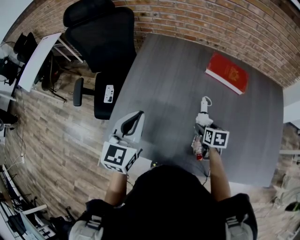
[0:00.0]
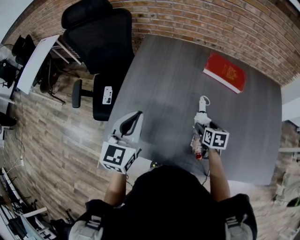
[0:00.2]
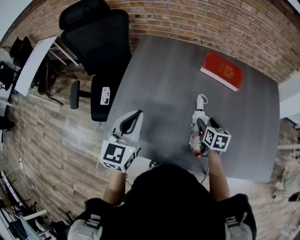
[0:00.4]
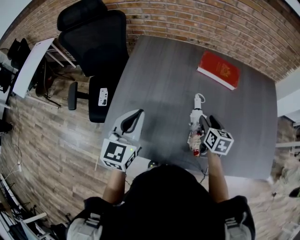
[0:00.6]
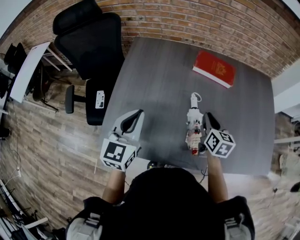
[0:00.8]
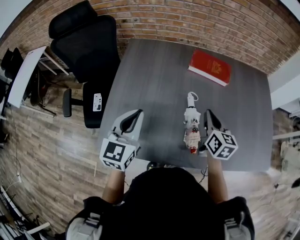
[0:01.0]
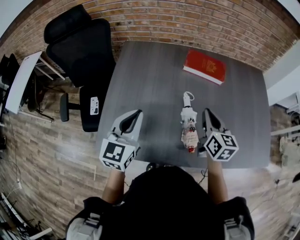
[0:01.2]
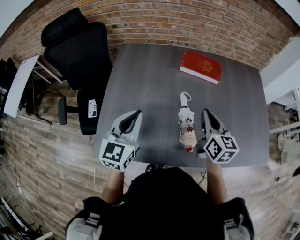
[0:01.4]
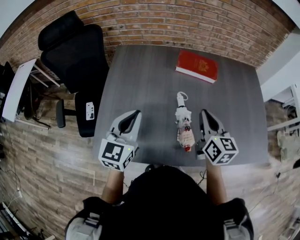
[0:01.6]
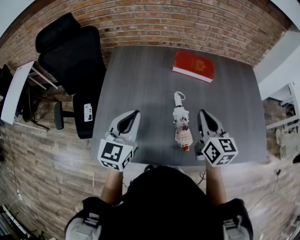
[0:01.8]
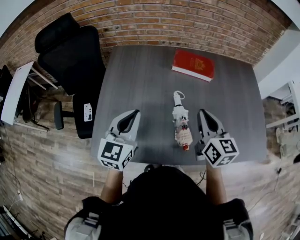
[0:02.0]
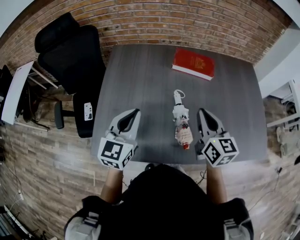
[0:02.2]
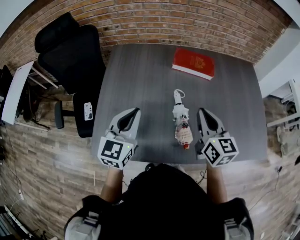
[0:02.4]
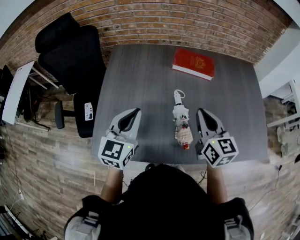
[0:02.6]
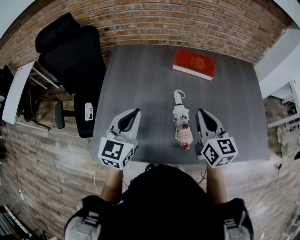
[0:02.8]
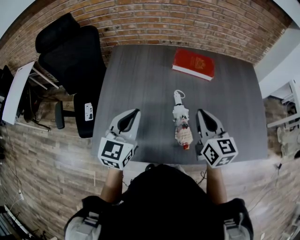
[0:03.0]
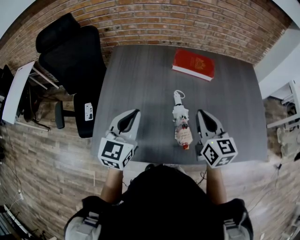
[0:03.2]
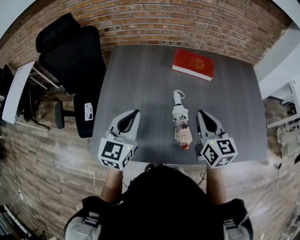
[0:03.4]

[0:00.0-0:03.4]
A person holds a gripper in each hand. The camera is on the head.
0:00.0 to 0:01.6: The right gripper heads upward, covering some 25 cm, angles its fingers upward, by about 40 degrees, and closes; the left gripper heads to the right, covering roughly 5 cm.
0:01.6 to 0:03.4: The grippers move only a little.

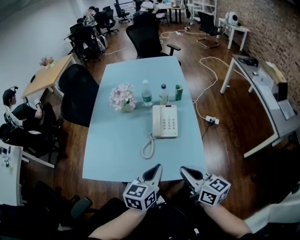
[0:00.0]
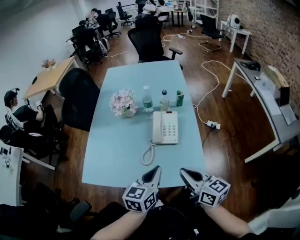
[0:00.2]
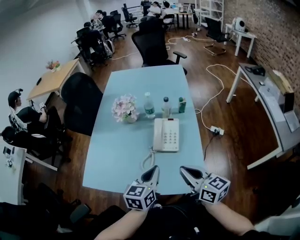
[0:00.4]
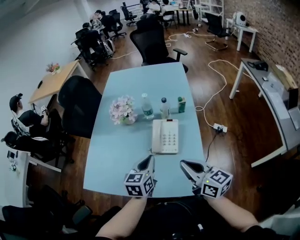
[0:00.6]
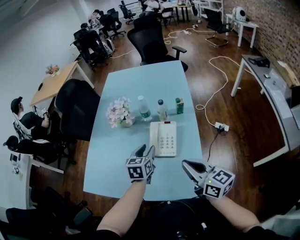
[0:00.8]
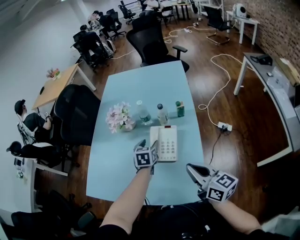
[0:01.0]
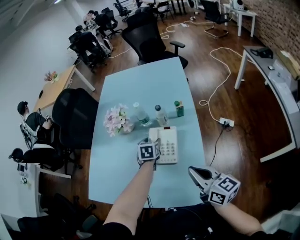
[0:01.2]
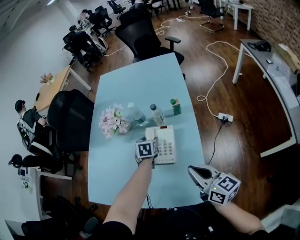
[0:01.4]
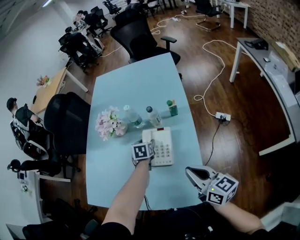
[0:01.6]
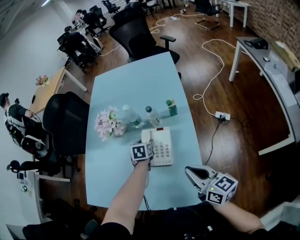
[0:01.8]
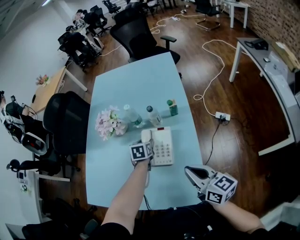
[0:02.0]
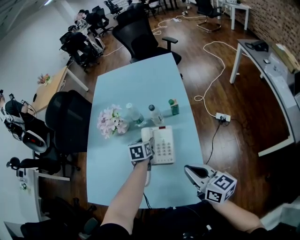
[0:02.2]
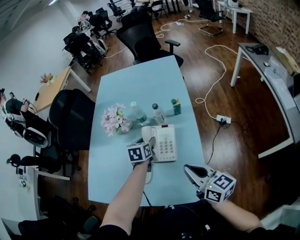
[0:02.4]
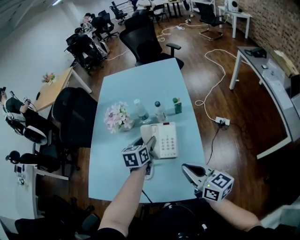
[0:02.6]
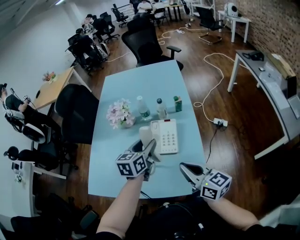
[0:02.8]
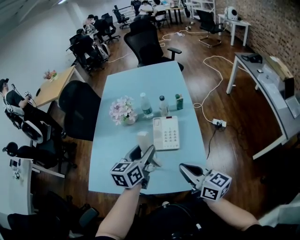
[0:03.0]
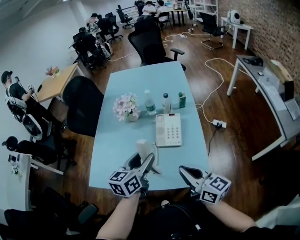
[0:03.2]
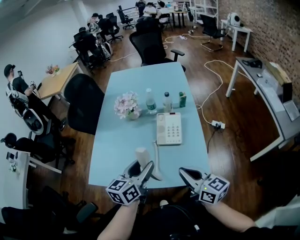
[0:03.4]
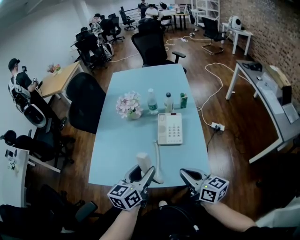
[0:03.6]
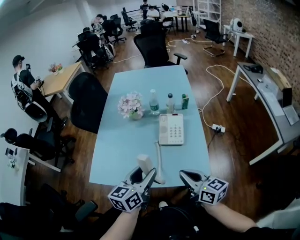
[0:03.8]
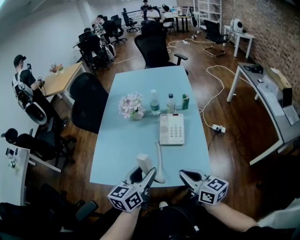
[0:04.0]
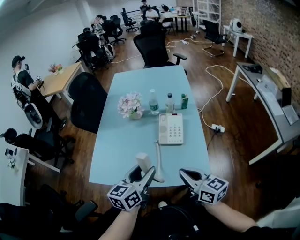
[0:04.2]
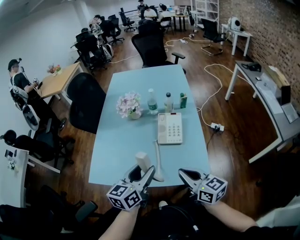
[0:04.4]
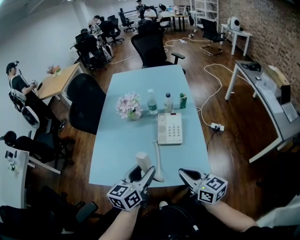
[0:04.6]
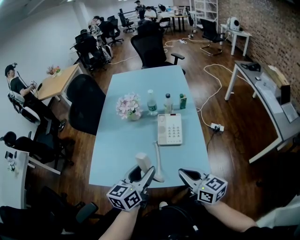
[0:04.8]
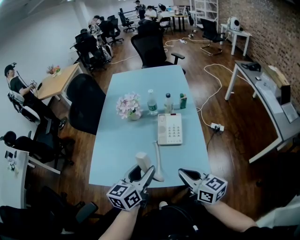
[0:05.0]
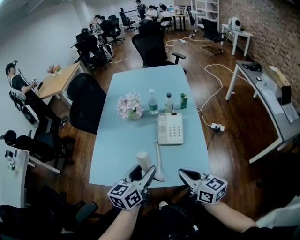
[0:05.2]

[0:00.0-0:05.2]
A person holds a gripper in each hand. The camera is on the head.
0:00.0 to 0:01.8: The left gripper heads forward and downward, covering approximately 40 cm, changes its angle by some 30 degrees, and opens, while the right gripper heads forward and to the right, covering approximately 20 cm.
0:01.8 to 0:03.4: The left gripper shifts some 40 cm backward, upward and to the left, and tips its fingers upward by roughly 40 degrees. The right gripper moves to the left and backward, roughly 20 cm.
0:03.4 to 0:05.2: The grippers make only small movements.

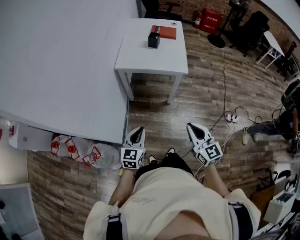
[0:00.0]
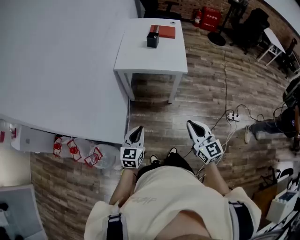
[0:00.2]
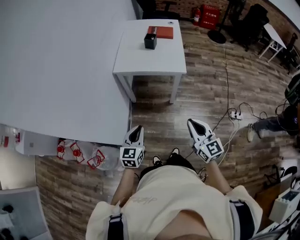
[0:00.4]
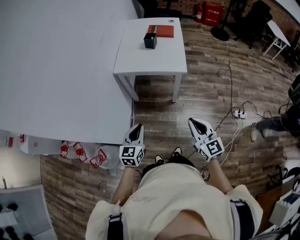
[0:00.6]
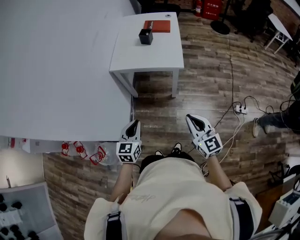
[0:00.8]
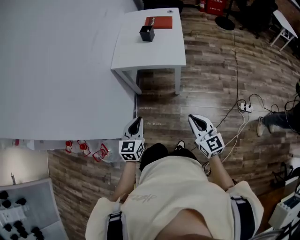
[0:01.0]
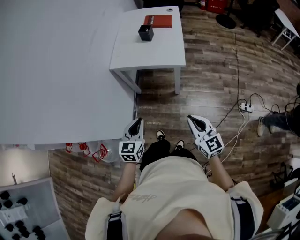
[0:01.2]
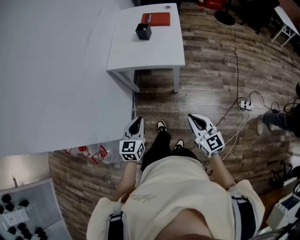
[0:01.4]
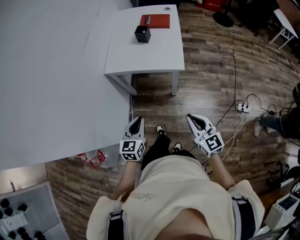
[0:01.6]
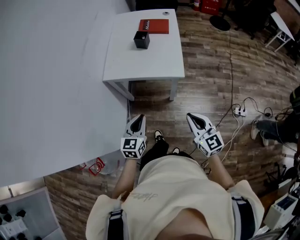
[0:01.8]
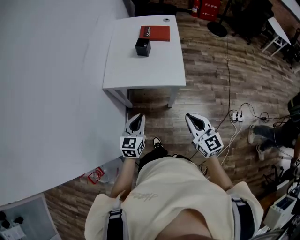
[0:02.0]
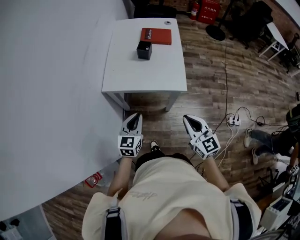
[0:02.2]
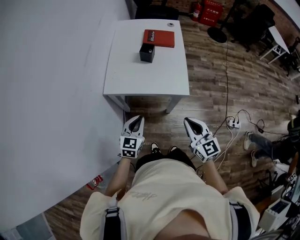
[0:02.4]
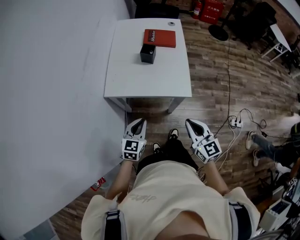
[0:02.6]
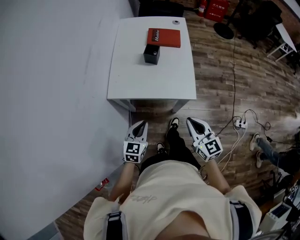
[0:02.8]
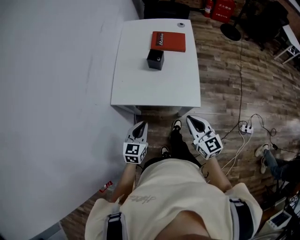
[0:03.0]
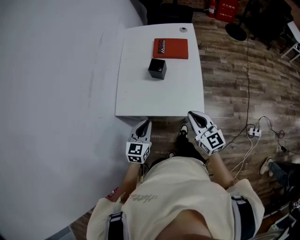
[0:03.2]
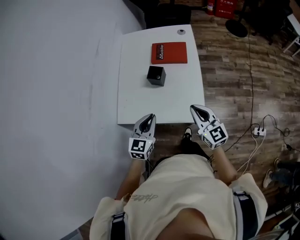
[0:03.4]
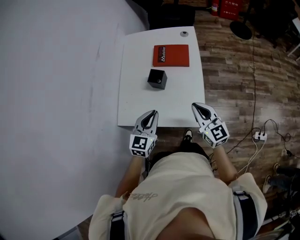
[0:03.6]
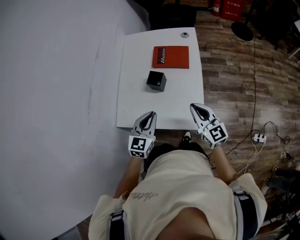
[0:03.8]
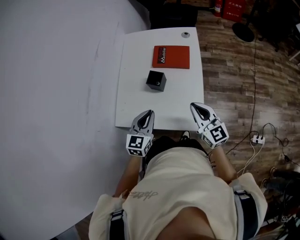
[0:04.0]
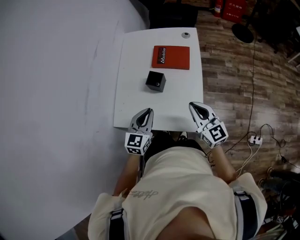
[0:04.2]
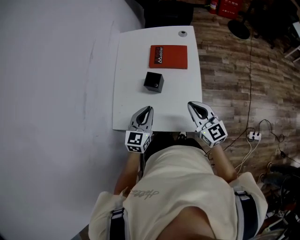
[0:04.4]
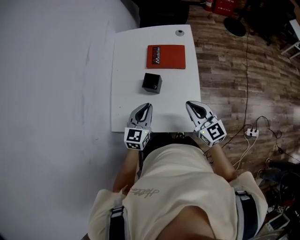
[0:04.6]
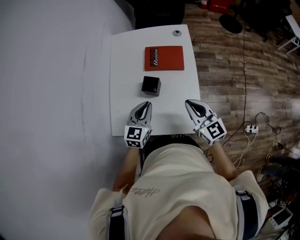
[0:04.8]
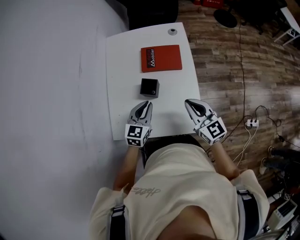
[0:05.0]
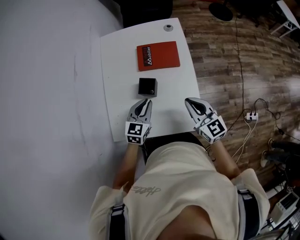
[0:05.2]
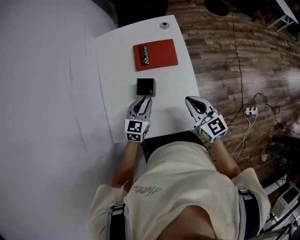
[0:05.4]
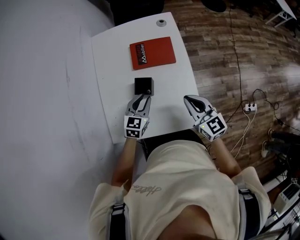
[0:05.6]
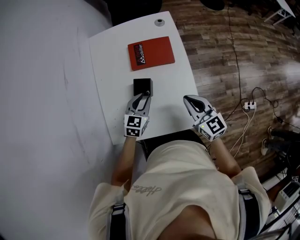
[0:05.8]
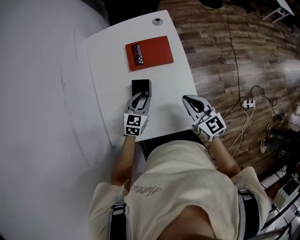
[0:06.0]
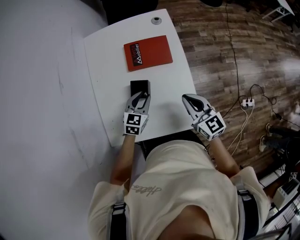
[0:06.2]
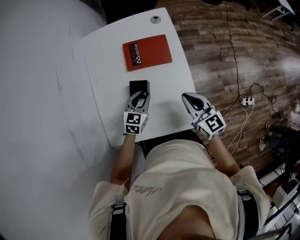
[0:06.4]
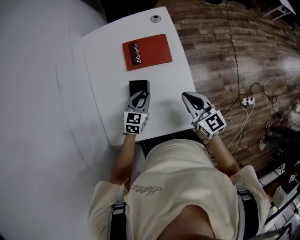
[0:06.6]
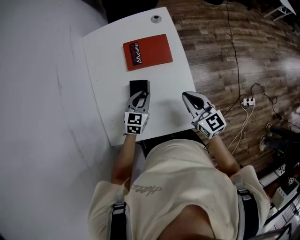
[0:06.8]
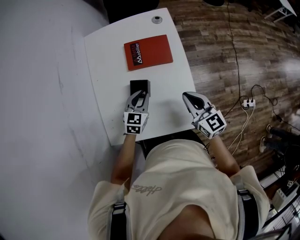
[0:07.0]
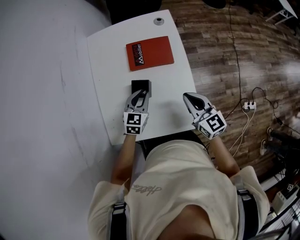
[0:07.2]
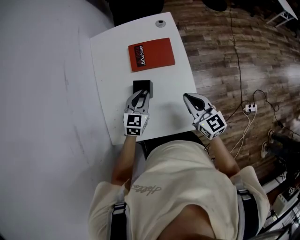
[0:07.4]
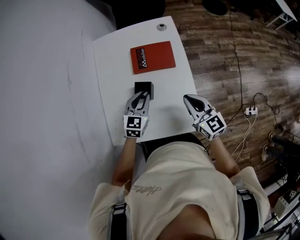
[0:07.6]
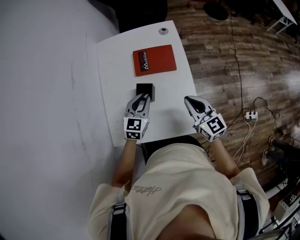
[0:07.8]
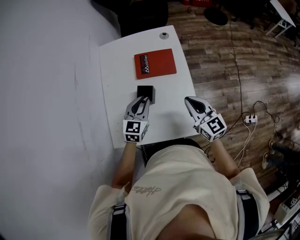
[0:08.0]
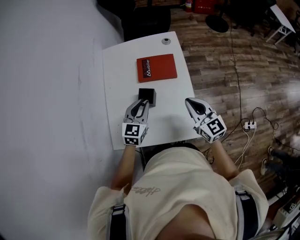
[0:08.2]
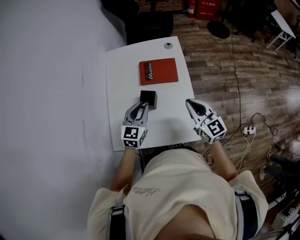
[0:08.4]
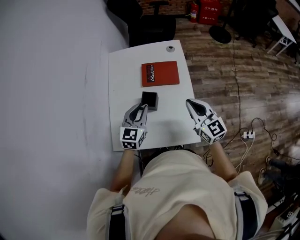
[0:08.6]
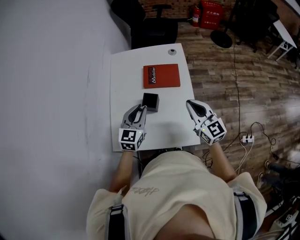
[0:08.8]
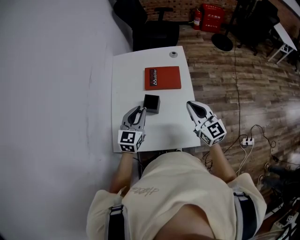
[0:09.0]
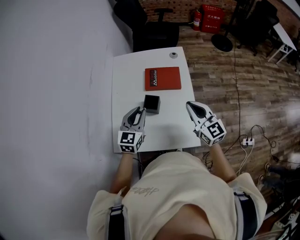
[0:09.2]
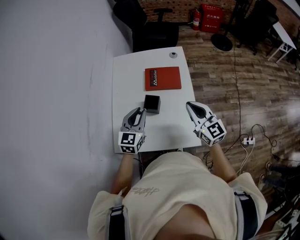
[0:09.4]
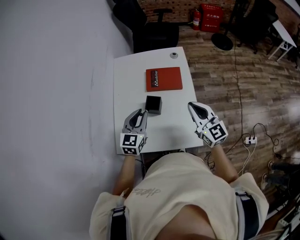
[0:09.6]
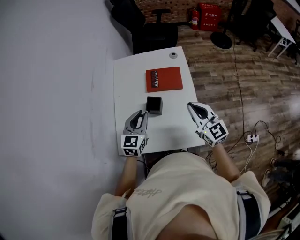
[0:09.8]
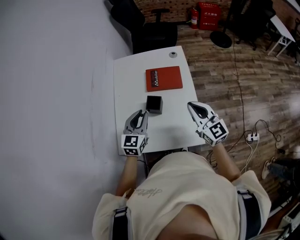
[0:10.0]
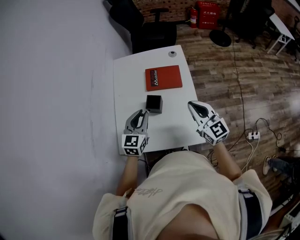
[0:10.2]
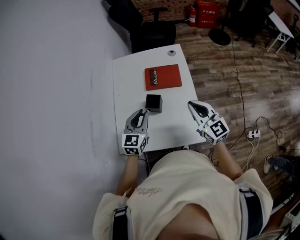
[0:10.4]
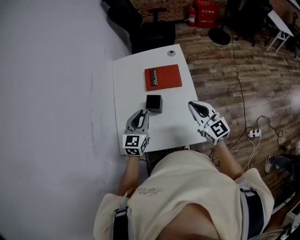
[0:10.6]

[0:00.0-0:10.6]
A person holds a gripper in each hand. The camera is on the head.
0:00.0 to 0:01.6: The grippers both shift forward and to the right by approximately 15 cm.
0:01.6 to 0:03.0: The two grippers go about 25 cm forward.
0:03.0 to 0:04.6: Both grippers travel together forward, approximately 25 cm.
0:04.6 to 0:06.0: The left gripper moves downward and forward, about 15 cm, and swivels approximately 20 degrees; the right gripper changes place by some 5 cm.
0:06.0 to 0:07.6: The left gripper moves upward, roughly 5 cm.
0:07.6 to 0:09.0: The left gripper moves upward and to the left, roughly 10 cm, while the right gripper is displaced upward by approximately 5 cm.
0:09.0 to 0:10.6: The grippers make only small movements.

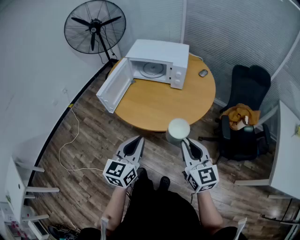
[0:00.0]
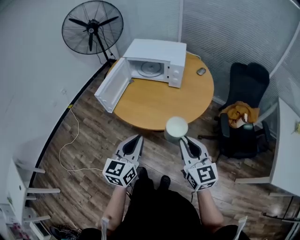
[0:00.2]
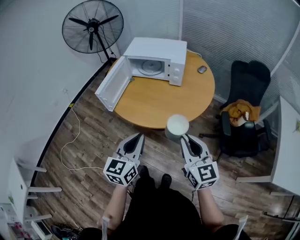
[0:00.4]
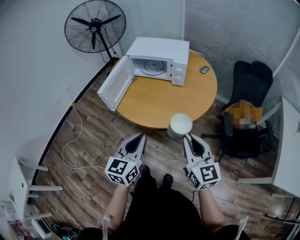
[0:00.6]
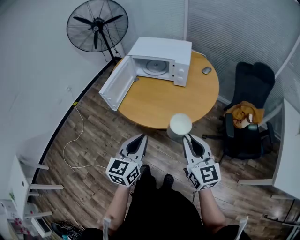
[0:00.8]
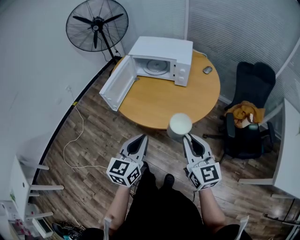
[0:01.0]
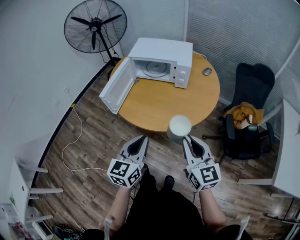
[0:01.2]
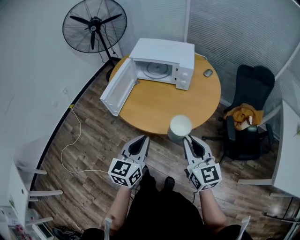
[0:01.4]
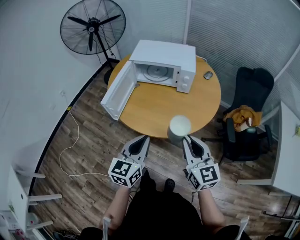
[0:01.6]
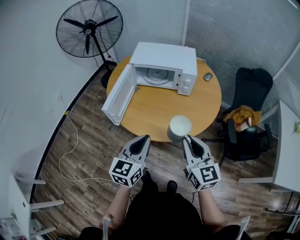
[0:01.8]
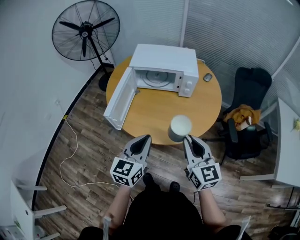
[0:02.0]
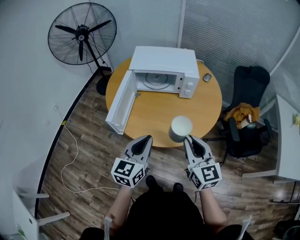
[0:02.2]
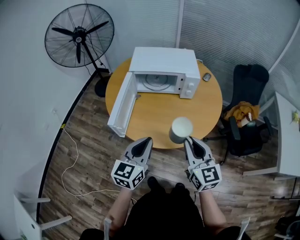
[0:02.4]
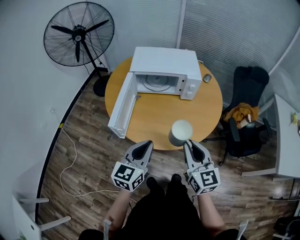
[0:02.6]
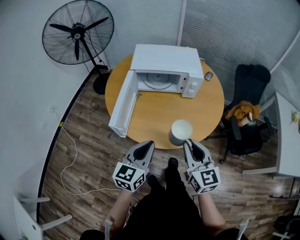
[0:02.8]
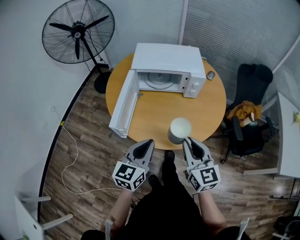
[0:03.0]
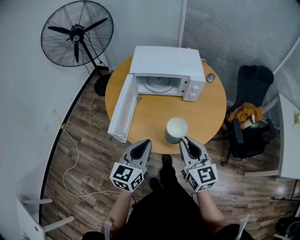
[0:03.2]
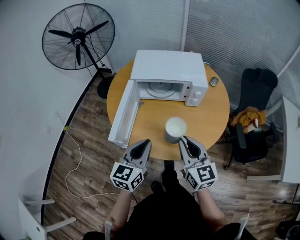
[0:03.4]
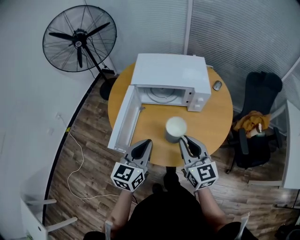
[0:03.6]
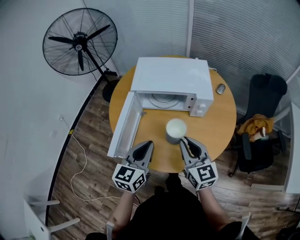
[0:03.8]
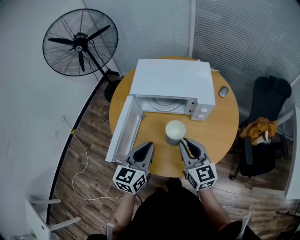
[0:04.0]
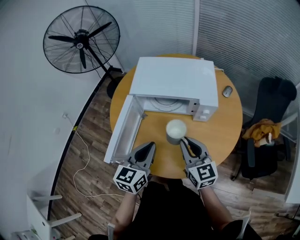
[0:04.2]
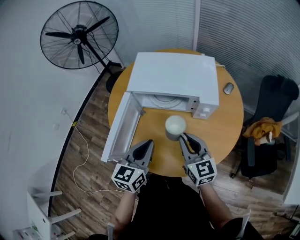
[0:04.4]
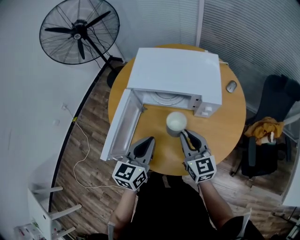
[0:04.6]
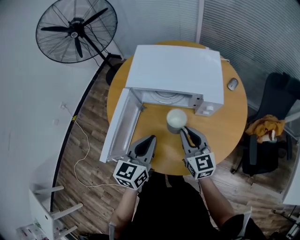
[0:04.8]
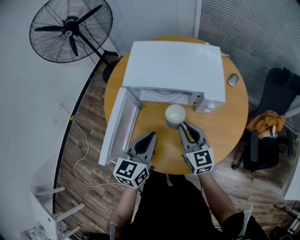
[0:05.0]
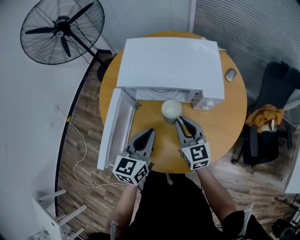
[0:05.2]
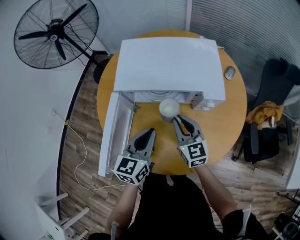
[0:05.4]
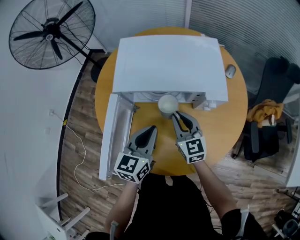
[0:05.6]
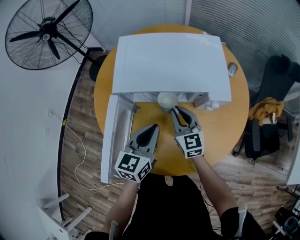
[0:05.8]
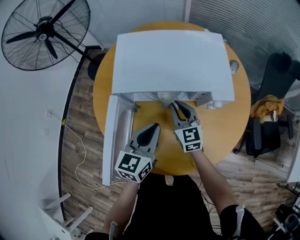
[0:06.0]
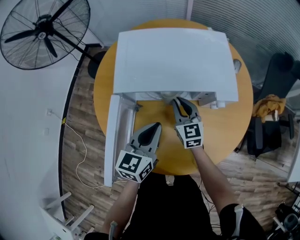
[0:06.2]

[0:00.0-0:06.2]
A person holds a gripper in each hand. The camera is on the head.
0:00.0 to 0:01.6: The right gripper moves forward and to the left, roughly 10 cm. Meanwhile the left gripper moves forward, approximately 5 cm.
0:01.6 to 0:03.2: The left gripper heads forward and to the left, covering some 15 cm. Meanwhile the right gripper goes about 15 cm to the left and forward.
0:03.2 to 0:04.6: Both grippers move forward, roughly 20 cm.
0:04.6 to 0:06.2: The left gripper shifts approximately 15 cm forward and downward; the right gripper shifts roughly 20 cm forward and downward.
